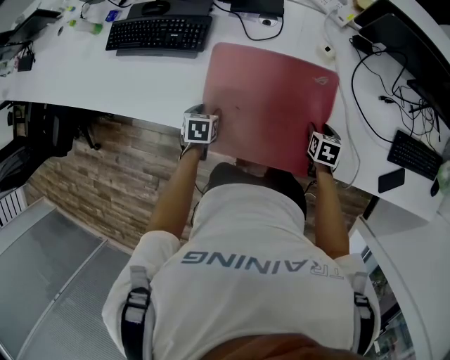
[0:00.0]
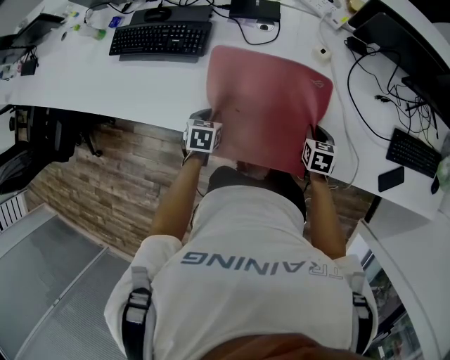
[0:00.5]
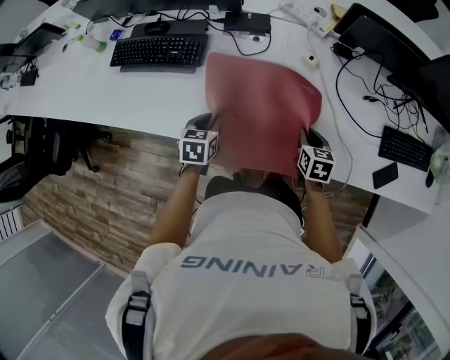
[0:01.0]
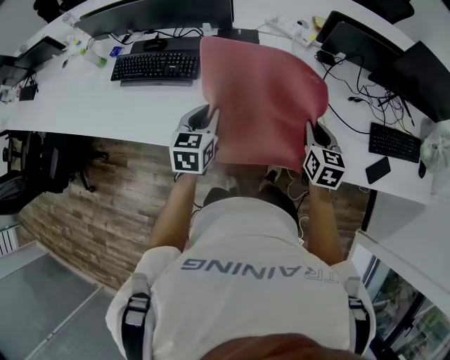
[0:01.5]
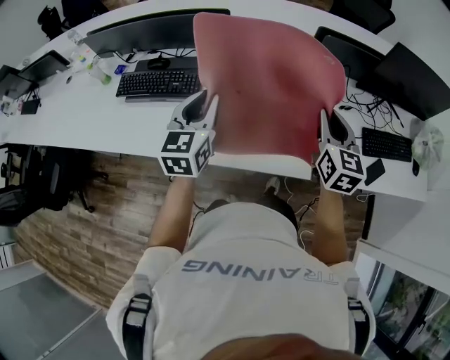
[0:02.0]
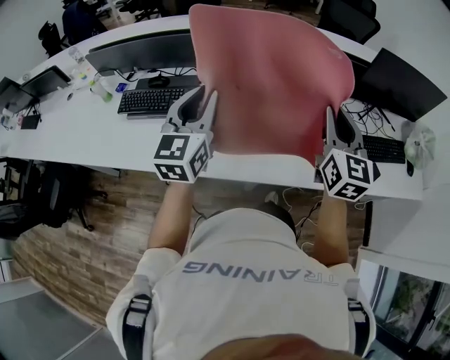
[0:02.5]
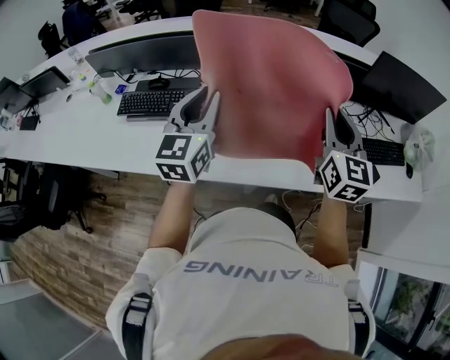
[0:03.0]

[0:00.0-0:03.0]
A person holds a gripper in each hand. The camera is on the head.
0:00.0 to 0:01.5: The grippers both shift upward by about 25 cm. The right gripper tilts its fingers about 30 degrees upward, and closes up. The left gripper points its fingers some 40 degrees further upward, and closes.
0:01.5 to 0:03.0: Both grippers move upward, some 25 cm. The right gripper changes its angle by some 30 degrees; the left gripper tilts its fingers approximately 30 degrees upward.

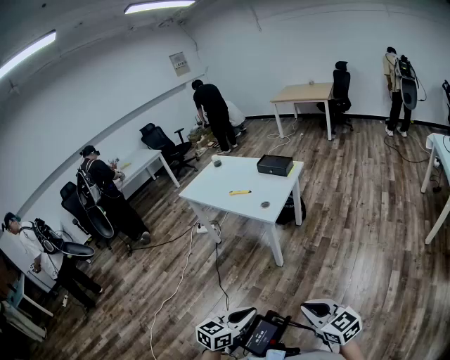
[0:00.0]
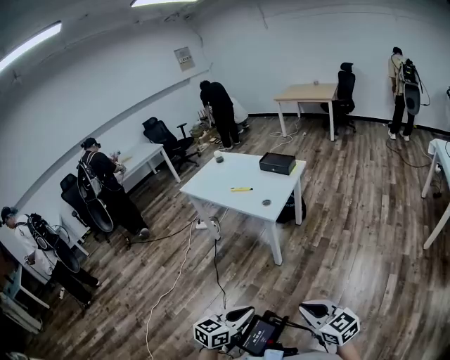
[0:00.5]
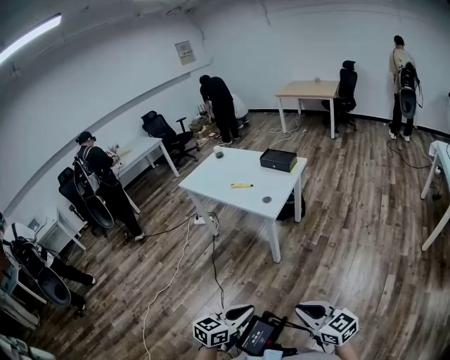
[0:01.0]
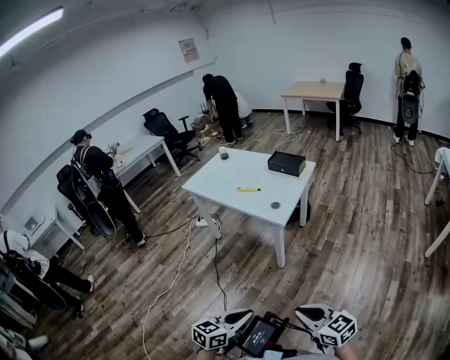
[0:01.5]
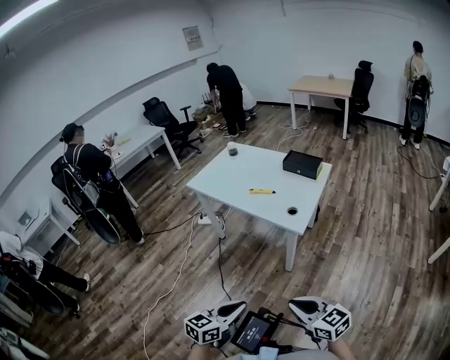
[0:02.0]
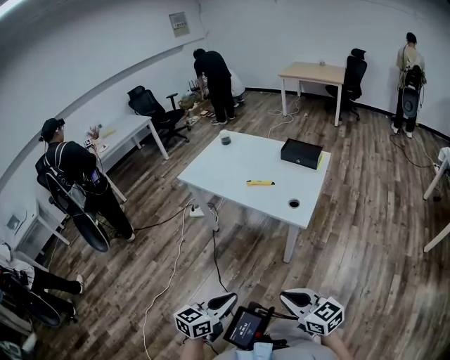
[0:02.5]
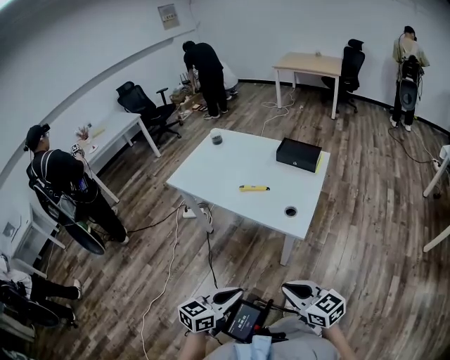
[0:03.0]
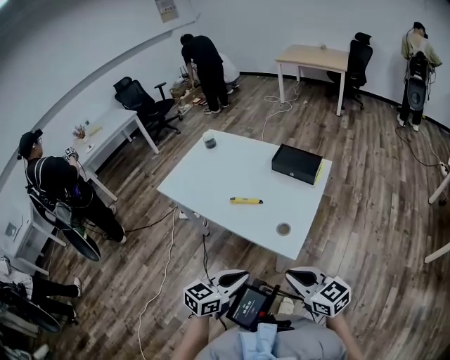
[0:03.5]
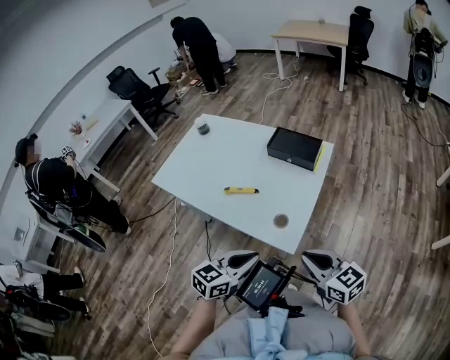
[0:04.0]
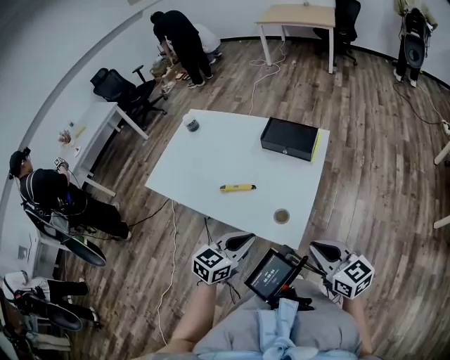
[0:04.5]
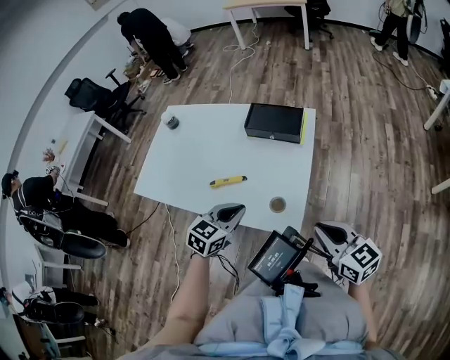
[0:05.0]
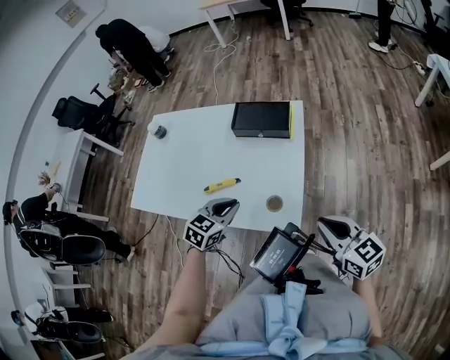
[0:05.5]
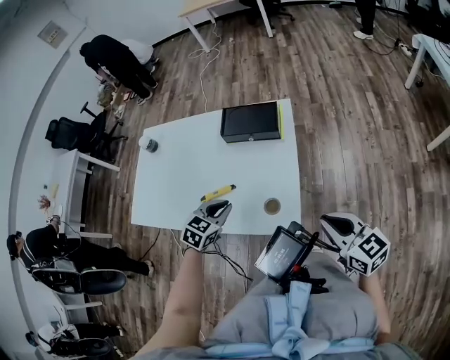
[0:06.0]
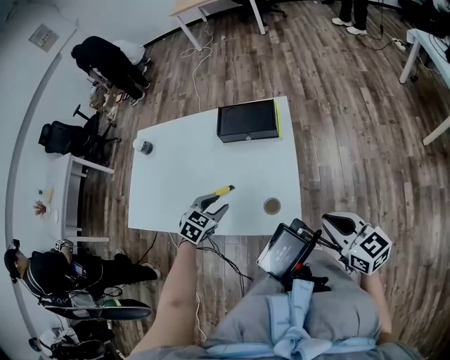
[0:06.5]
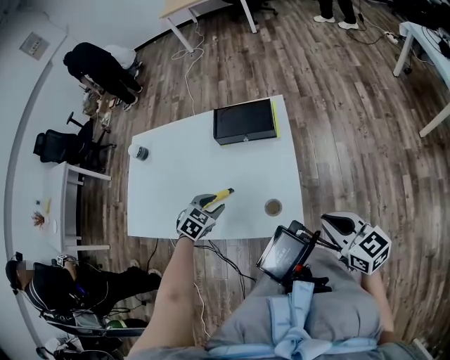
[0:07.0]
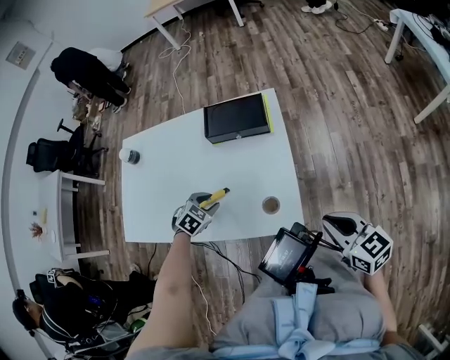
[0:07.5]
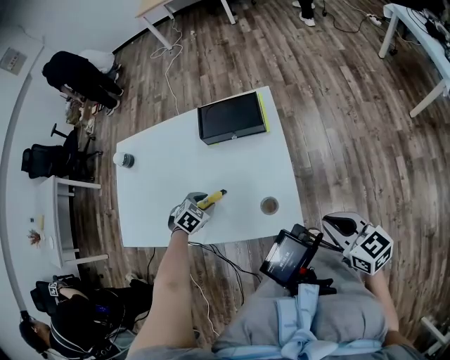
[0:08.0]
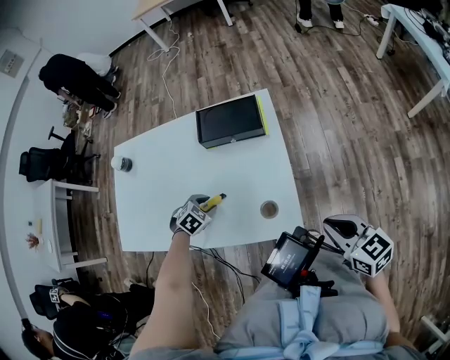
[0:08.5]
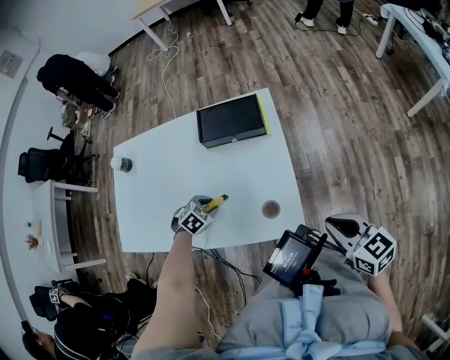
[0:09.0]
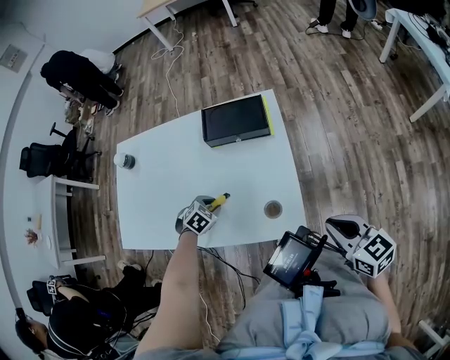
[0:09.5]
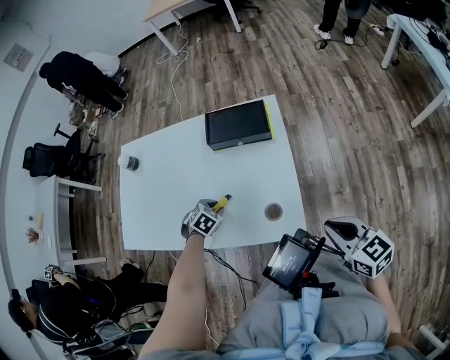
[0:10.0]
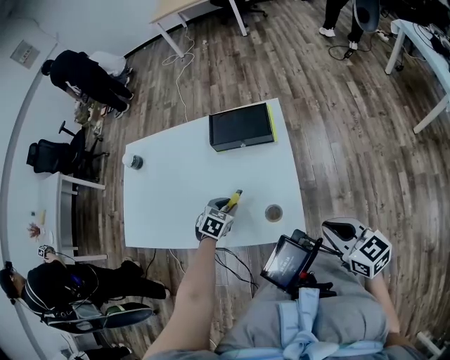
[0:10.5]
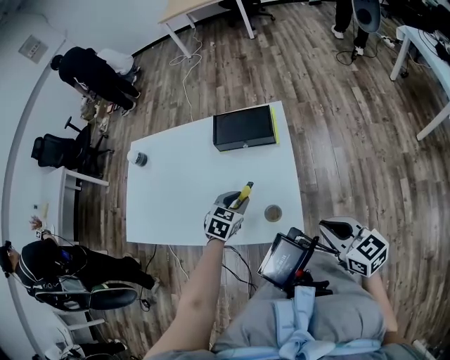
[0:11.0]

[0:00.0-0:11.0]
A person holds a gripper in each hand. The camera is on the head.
0:00.0 to 0:02.0: The two grippers go some 25 cm to the left and forward.
0:02.0 to 0:03.5: The grippers both shift forward by approximately 30 cm.
0:03.5 to 0:05.5: The left gripper goes approximately 25 cm forward, and changes its angle by about 30 degrees; the right gripper moves forward and to the right, some 15 cm, and swivels roughly 30 degrees.
0:05.5 to 0:07.5: The left gripper travels downward, to the left and forward by approximately 15 cm, rotates about 30 degrees, and opens up.
0:07.5 to 0:09.0: The grippers make only small movements.
0:09.0 to 0:11.0: The left gripper is displaced to the right and upward by some 15 cm, and turns by approximately 30 degrees.

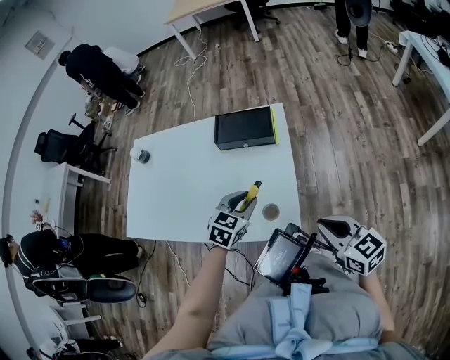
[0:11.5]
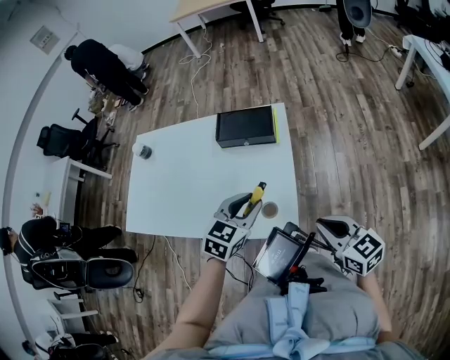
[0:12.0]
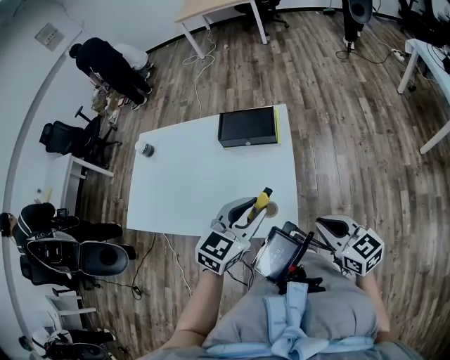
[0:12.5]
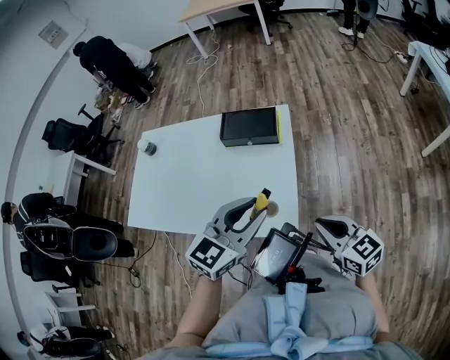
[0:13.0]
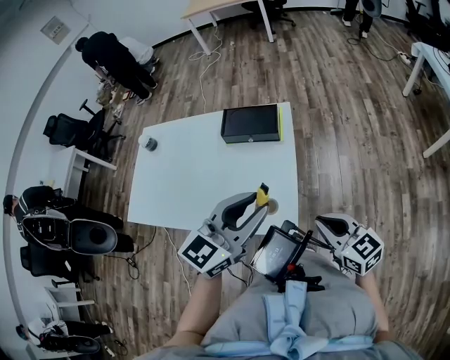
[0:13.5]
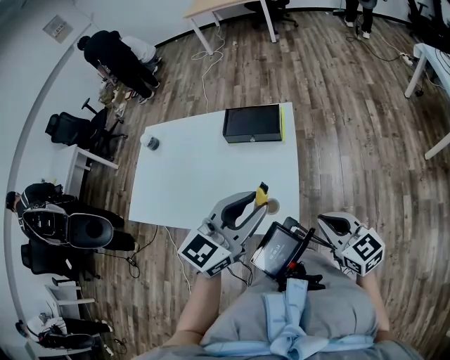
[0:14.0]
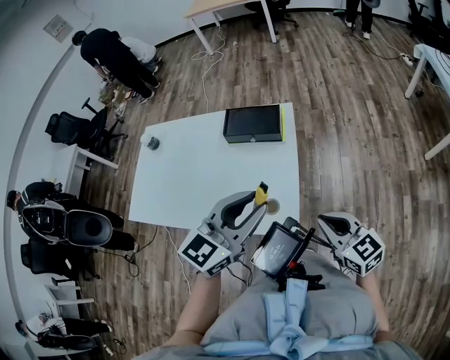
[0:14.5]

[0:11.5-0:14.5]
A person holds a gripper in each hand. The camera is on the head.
0:11.5 to 0:13.0: The left gripper goes roughly 20 cm upward and backward, and swivels roughly 30 degrees.
0:13.0 to 0:14.5: There are only small adjustments of the grippers.

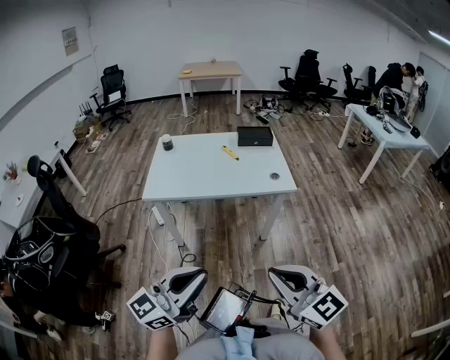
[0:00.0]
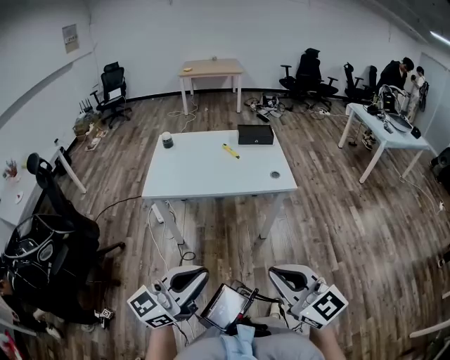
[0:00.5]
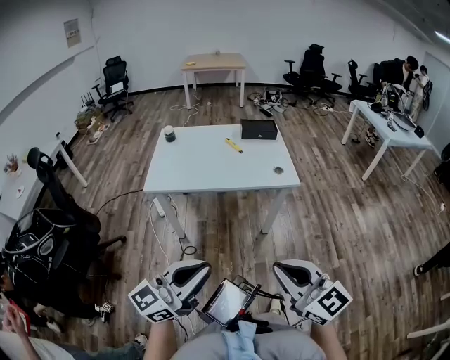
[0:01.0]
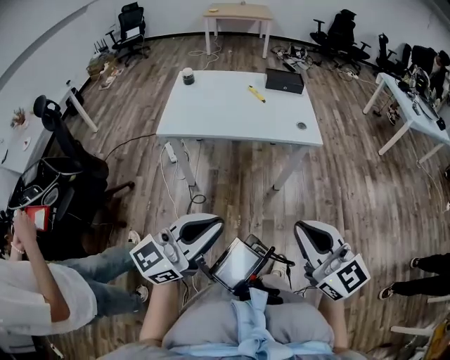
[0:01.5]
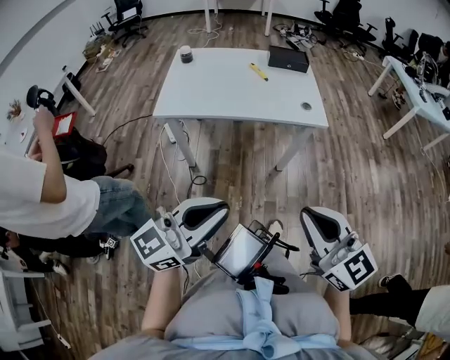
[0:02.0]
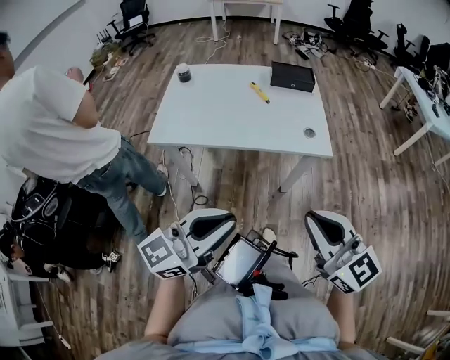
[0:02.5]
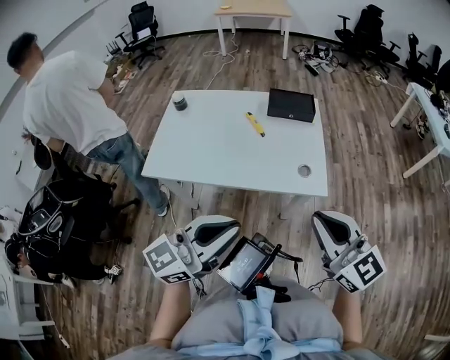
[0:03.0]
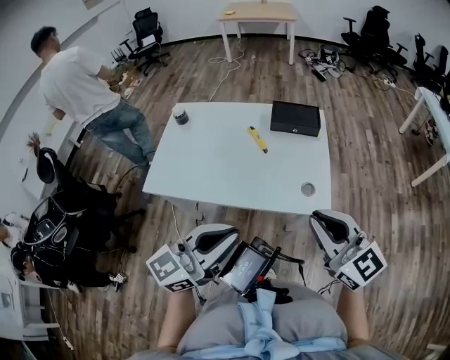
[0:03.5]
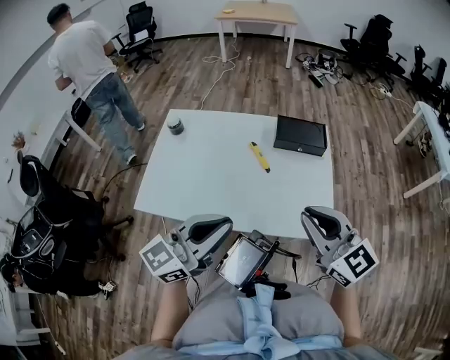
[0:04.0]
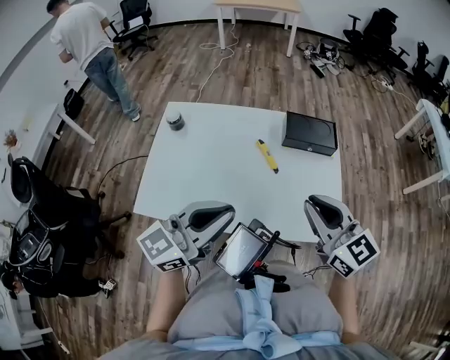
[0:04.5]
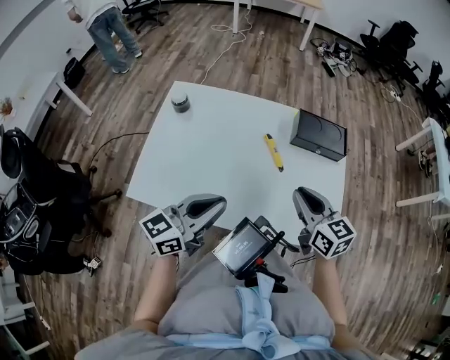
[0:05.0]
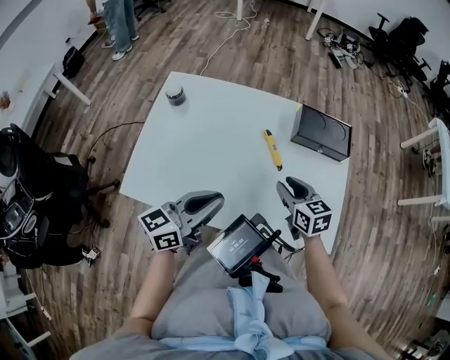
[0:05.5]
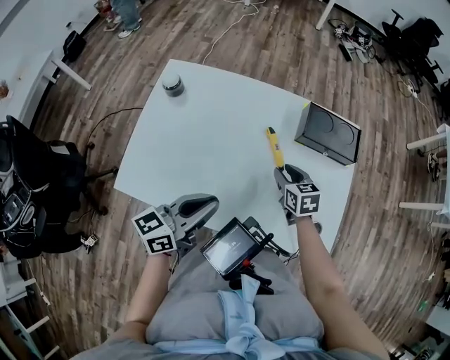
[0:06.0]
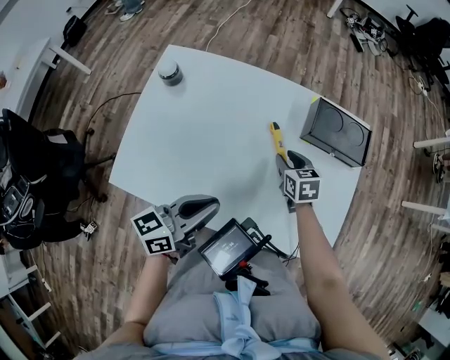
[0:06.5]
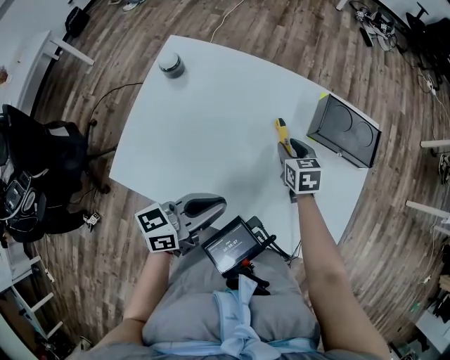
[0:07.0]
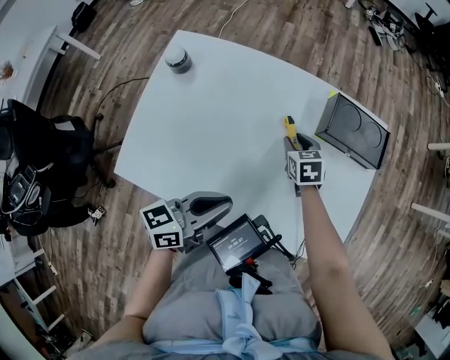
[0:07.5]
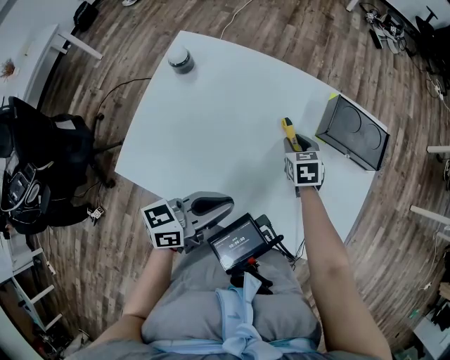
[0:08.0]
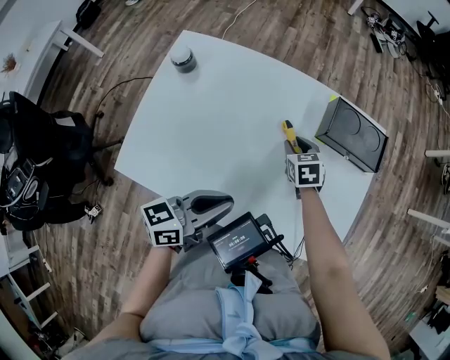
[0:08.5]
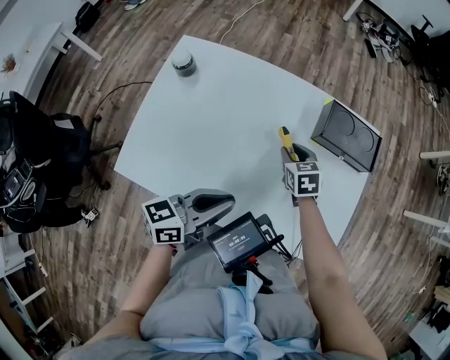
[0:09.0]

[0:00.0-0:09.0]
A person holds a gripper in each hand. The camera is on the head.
0:00.0 to 0:02.0: The grippers stay close to where they were, moving slightly.
0:02.0 to 0:04.5: The two grippers travel together, forward, about 50 cm.
0:04.5 to 0:07.0: The left gripper goes about 20 cm downward and forward, and turns by some 40 degrees. Meanwhile the right gripper goes roughly 40 cm downward and forward, tips its fingers downward by approximately 40 degrees, and opens its fingers.
0:07.0 to 0:09.0: There are only small adjustments of the grippers.
